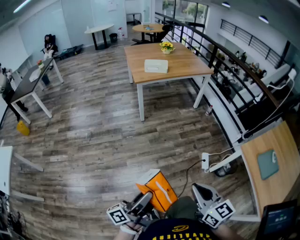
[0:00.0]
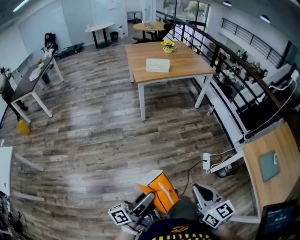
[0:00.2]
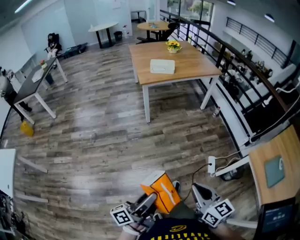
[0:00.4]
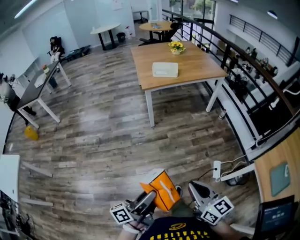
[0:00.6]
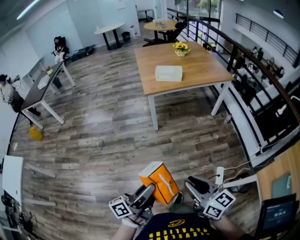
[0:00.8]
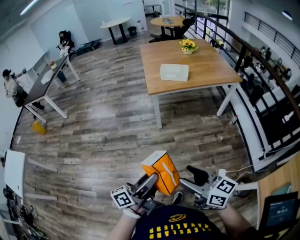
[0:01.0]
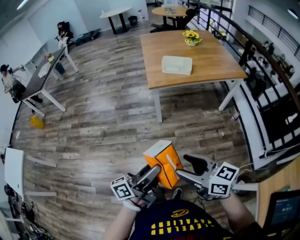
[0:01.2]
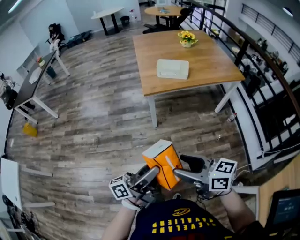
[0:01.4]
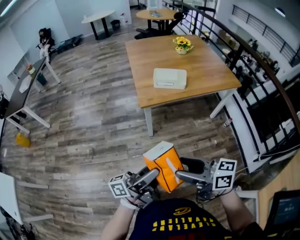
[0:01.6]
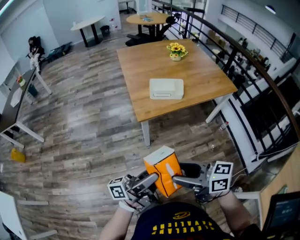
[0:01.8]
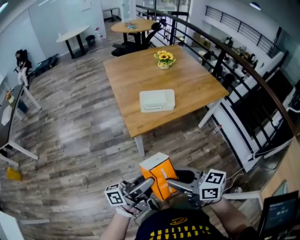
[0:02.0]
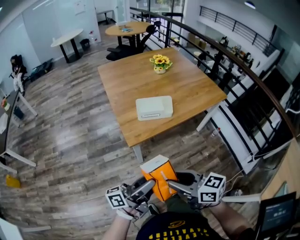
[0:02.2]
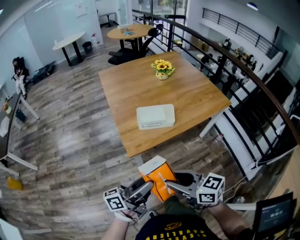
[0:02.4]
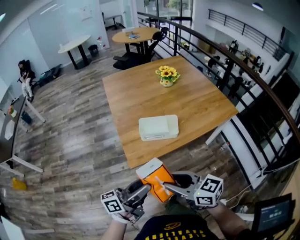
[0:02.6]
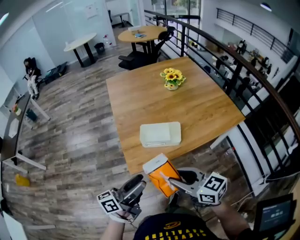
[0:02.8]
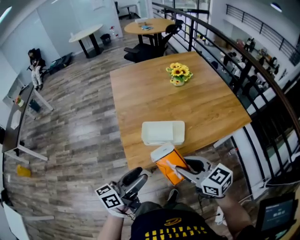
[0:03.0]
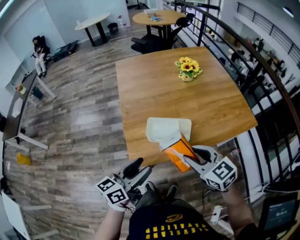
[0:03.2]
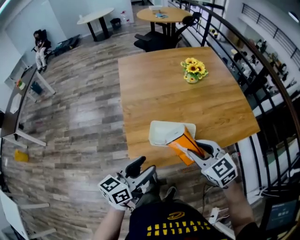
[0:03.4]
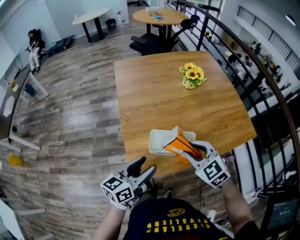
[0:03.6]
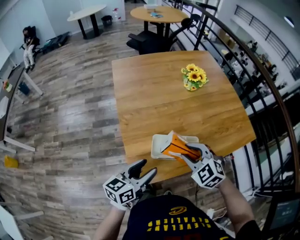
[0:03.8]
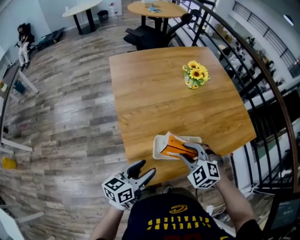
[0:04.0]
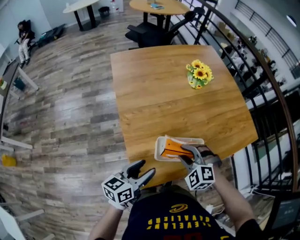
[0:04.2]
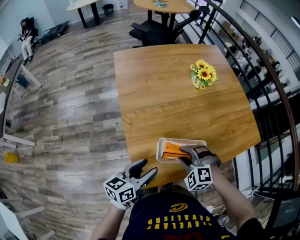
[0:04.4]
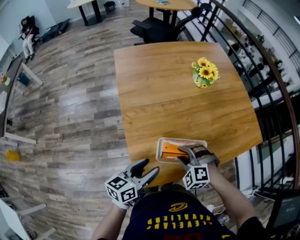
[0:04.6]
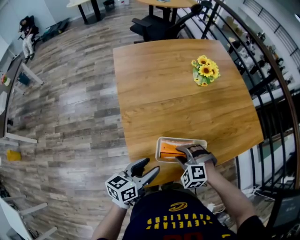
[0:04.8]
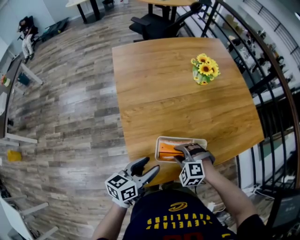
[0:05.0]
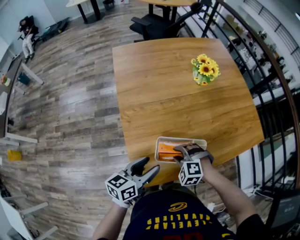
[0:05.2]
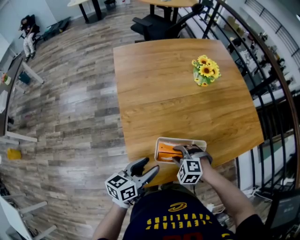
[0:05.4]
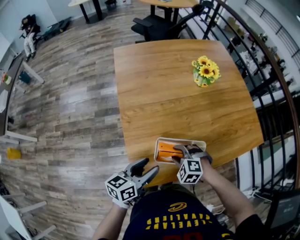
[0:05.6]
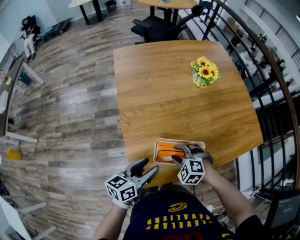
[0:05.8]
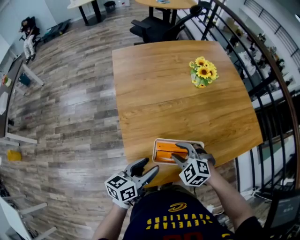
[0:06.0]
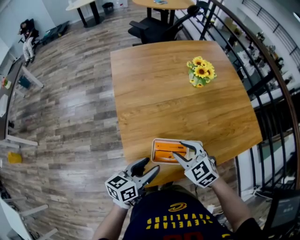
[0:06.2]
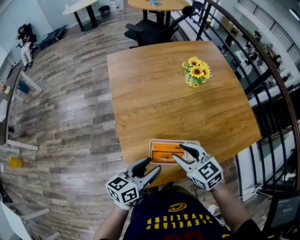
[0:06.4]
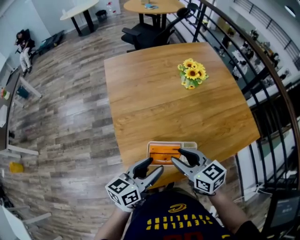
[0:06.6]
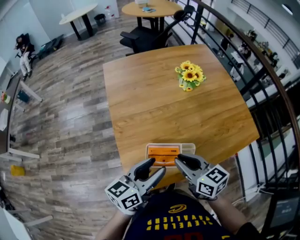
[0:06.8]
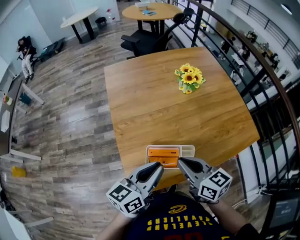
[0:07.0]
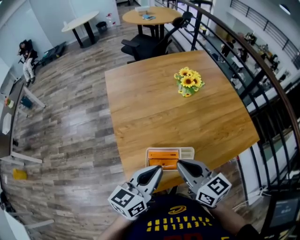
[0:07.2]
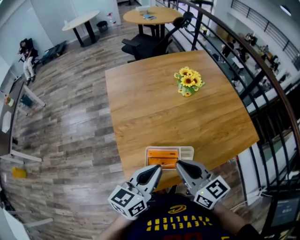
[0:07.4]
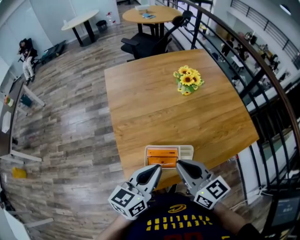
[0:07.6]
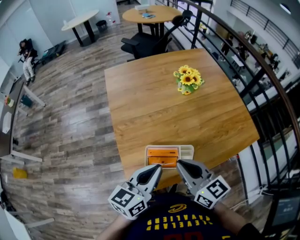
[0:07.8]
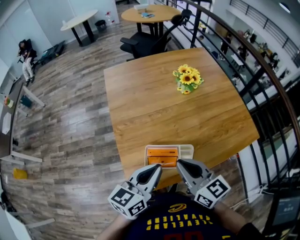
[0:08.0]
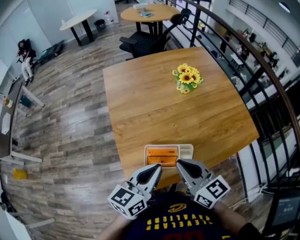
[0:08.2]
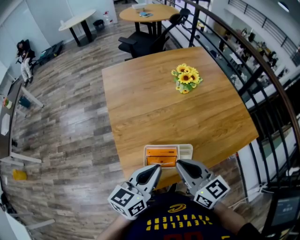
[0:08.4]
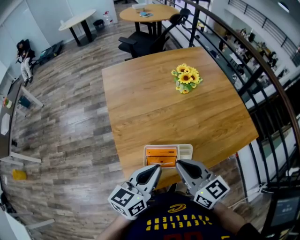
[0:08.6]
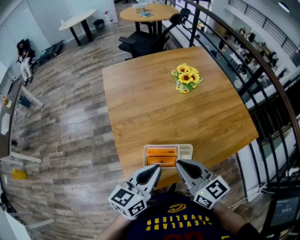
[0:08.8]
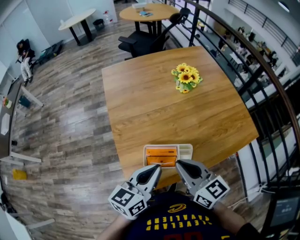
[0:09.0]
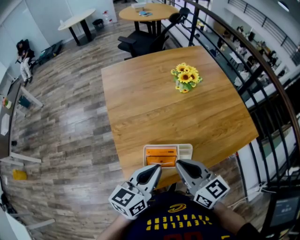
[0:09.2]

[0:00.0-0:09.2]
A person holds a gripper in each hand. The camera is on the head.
0:00.0 to 0:01.6: Both grippers are carried forward, roughly 50 cm. The right gripper swivels about 40 degrees, and opens up.
0:01.6 to 0:03.0: Both grippers move forward, roughly 40 cm. The right gripper changes its angle by approximately 30 degrees, and closes up. The left gripper rotates roughly 30 degrees.
0:03.0 to 0:04.6: The left gripper heads forward and downward, covering approximately 20 cm, while the right gripper moves forward, downward and to the left, about 30 cm, and twists roughly 60 degrees counterclockwise, seen from behind.
0:04.6 to 0:06.2: The right gripper moves upward, about 5 cm, and swivels approximately 40 degrees.
0:06.2 to 0:07.6: The left gripper moves upward and to the right, some 10 cm, and closes up; the right gripper goes roughly 10 cm upward, changes its angle by some 40 degrees, and closes up.
0:07.6 to 0:09.2: Neither gripper changes place.

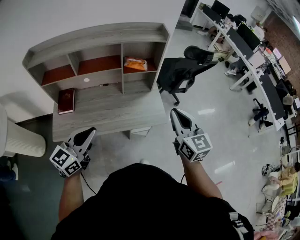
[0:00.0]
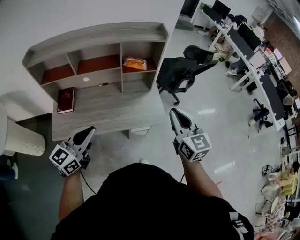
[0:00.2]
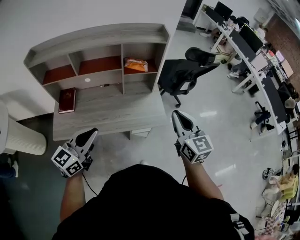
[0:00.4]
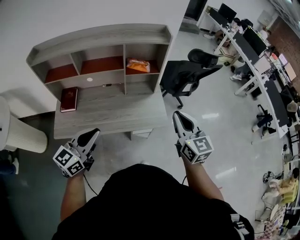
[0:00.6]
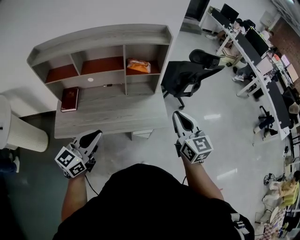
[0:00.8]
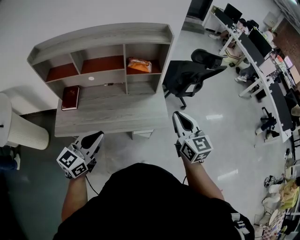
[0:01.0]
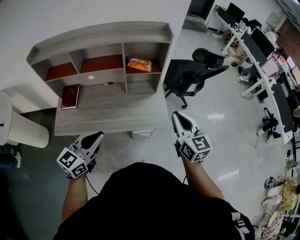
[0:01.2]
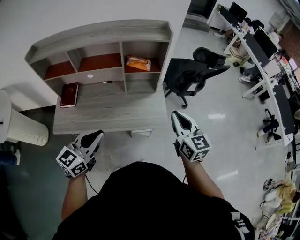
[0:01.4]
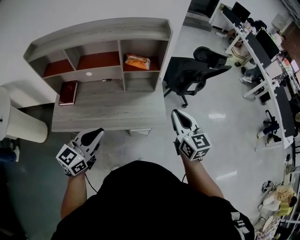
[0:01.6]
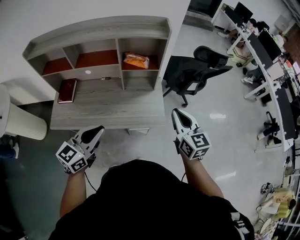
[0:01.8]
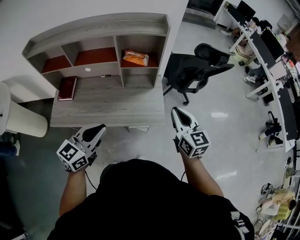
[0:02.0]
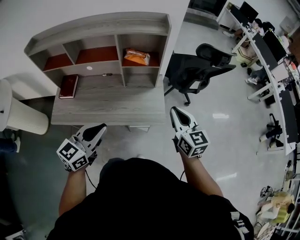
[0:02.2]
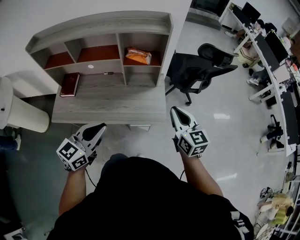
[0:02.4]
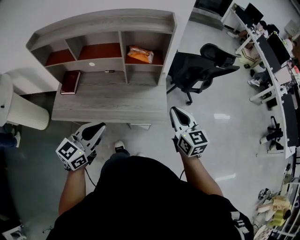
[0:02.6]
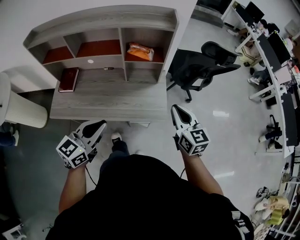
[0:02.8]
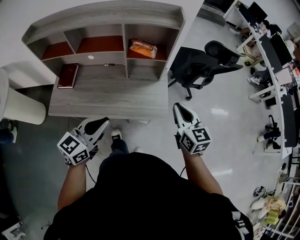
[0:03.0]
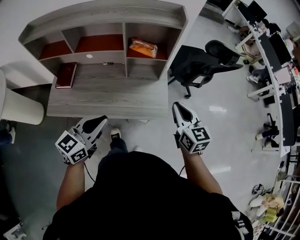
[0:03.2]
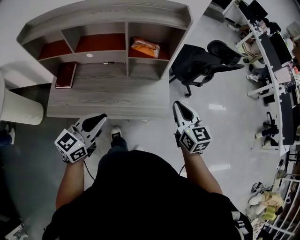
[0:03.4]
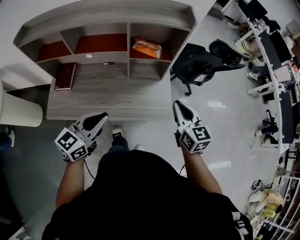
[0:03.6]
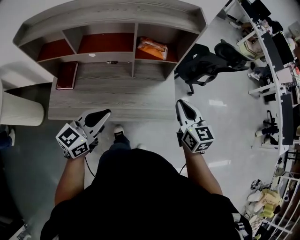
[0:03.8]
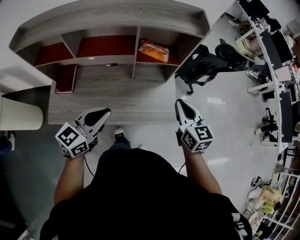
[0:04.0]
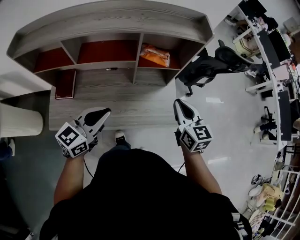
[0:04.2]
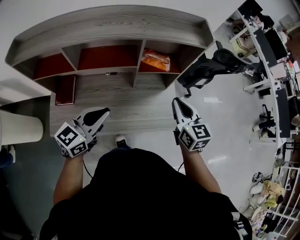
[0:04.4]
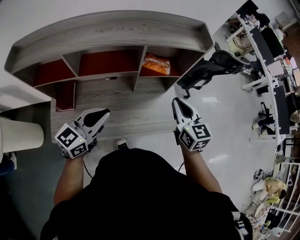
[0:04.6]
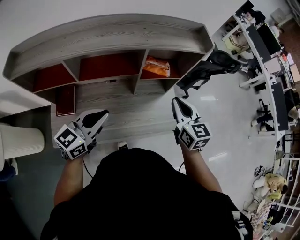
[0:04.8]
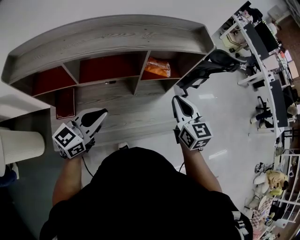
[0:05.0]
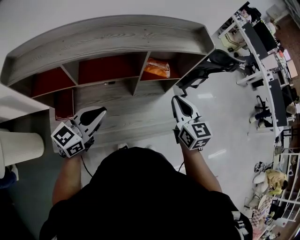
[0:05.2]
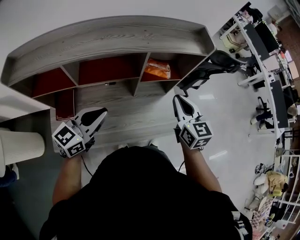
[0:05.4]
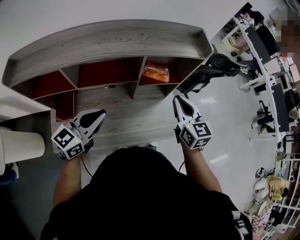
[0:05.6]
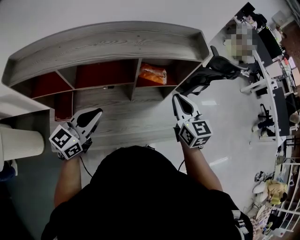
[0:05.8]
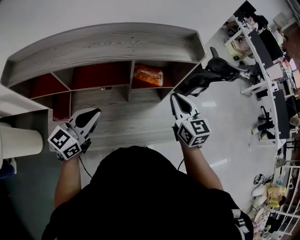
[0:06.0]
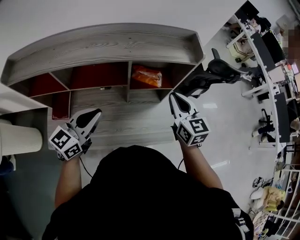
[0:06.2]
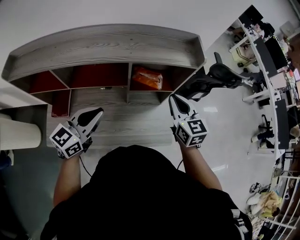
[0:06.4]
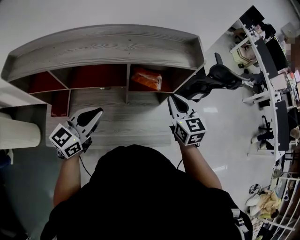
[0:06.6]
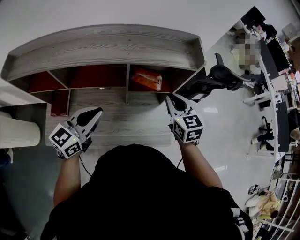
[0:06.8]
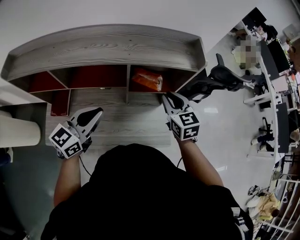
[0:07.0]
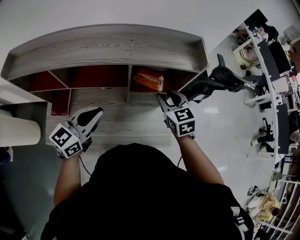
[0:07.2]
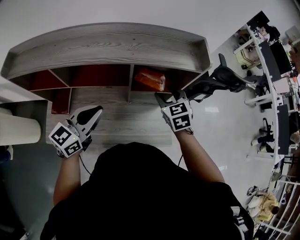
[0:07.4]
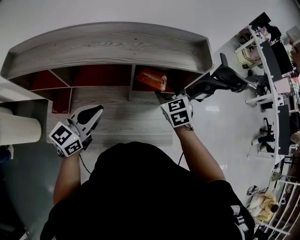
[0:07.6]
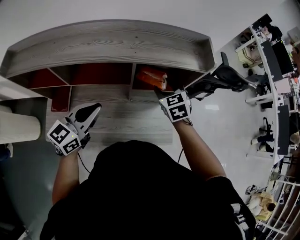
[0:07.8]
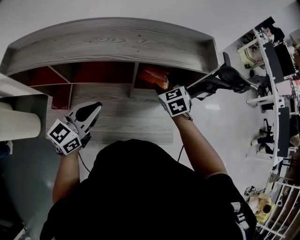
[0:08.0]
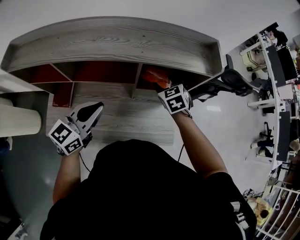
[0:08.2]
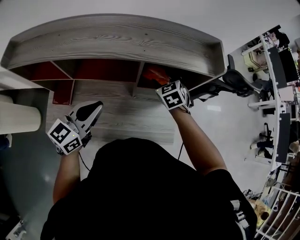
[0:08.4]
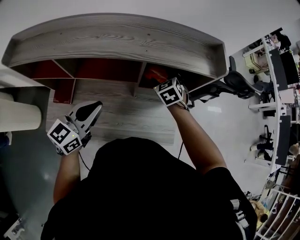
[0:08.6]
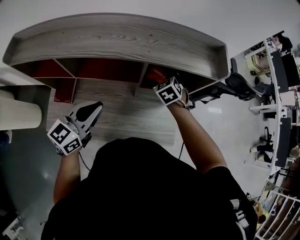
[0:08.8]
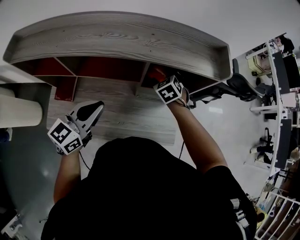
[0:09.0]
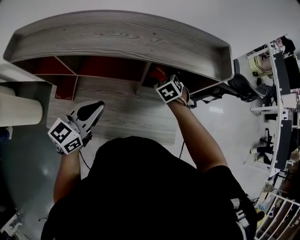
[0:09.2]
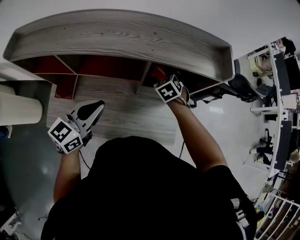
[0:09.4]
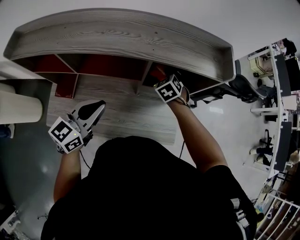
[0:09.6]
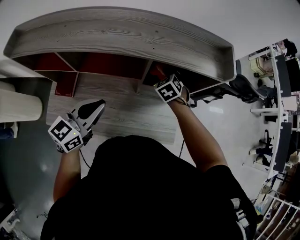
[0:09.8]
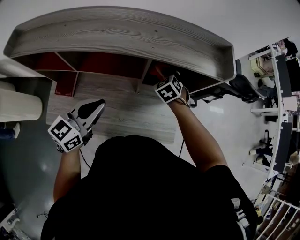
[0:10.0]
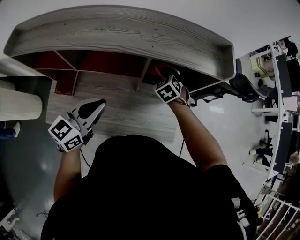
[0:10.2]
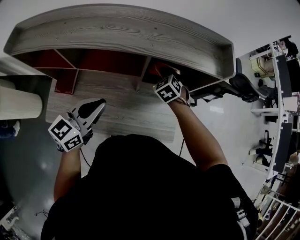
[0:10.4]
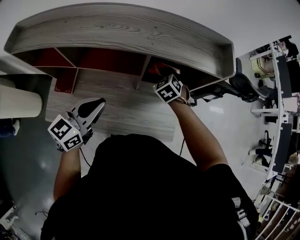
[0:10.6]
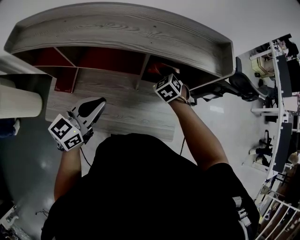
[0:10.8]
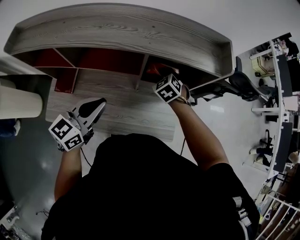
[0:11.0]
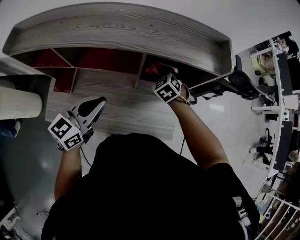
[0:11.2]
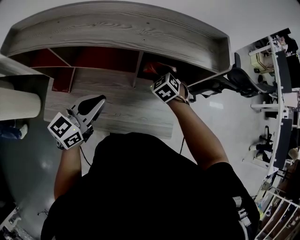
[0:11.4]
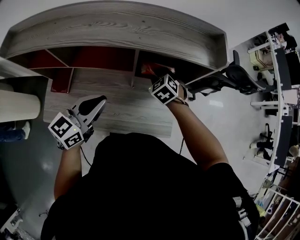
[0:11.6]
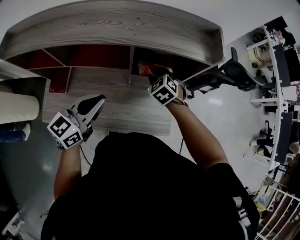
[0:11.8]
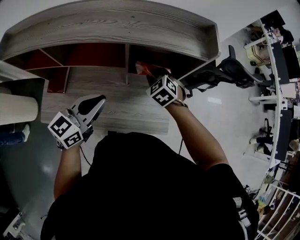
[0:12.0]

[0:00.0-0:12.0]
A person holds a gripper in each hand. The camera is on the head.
0:00.0 to 0:01.6: The left gripper heads to the right, covering roughly 10 cm, while the right gripper moves forward, to the right and downward, approximately 10 cm.
0:01.6 to 0:03.0: The right gripper moves roughly 5 cm; the left gripper changes place by about 5 cm.
0:03.0 to 0:04.4: Both grippers travel together to the left and forward, approximately 20 cm.
0:04.4 to 0:06.0: Both grippers travel together forward, some 10 cm.
0:06.0 to 0:07.6: The right gripper shifts about 10 cm forward and downward, rotates roughly 30 degrees, and opens its fingers.
0:07.6 to 0:09.0: The right gripper heads downward, forward and to the left, covering approximately 10 cm, and rotates approximately 20 degrees.
0:09.0 to 0:10.4: The right gripper closes its fingers.
0:10.4 to 0:12.0: The left gripper is displaced to the right by roughly 5 cm. Meanwhile the right gripper goes about 5 cm backward.

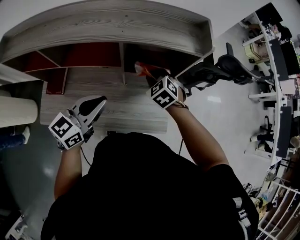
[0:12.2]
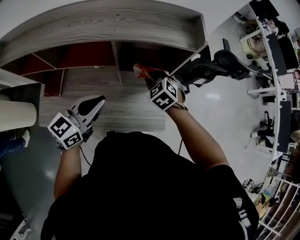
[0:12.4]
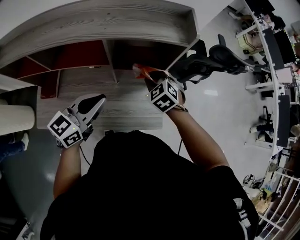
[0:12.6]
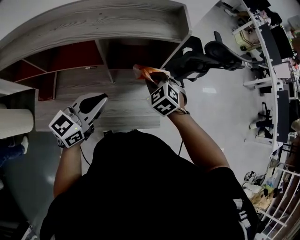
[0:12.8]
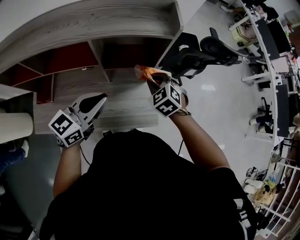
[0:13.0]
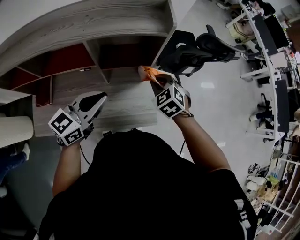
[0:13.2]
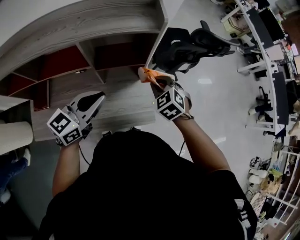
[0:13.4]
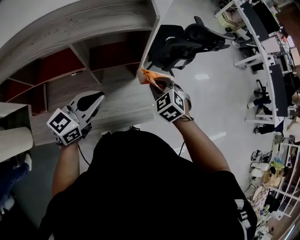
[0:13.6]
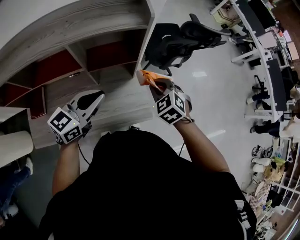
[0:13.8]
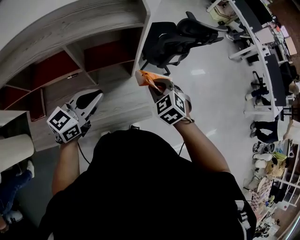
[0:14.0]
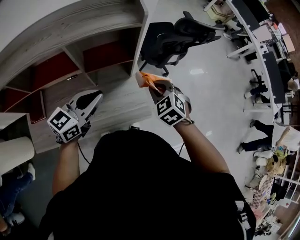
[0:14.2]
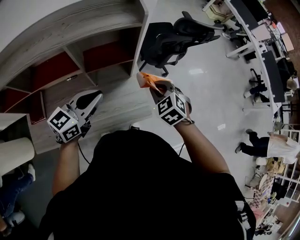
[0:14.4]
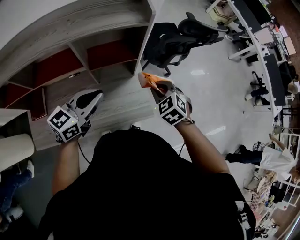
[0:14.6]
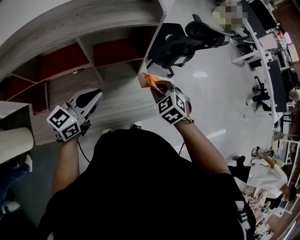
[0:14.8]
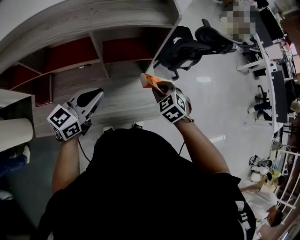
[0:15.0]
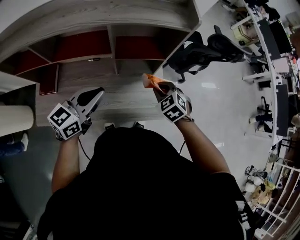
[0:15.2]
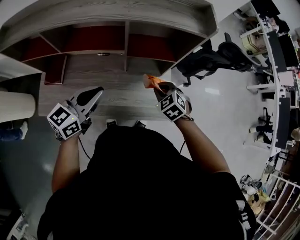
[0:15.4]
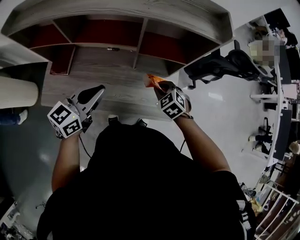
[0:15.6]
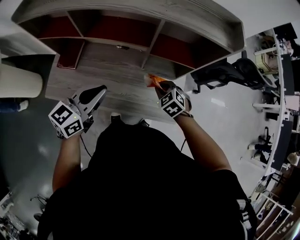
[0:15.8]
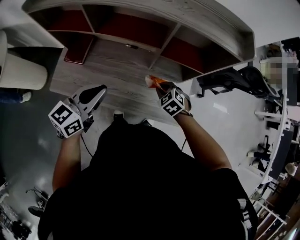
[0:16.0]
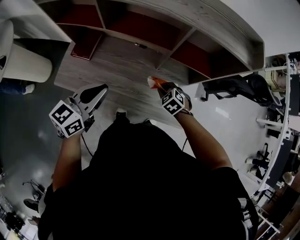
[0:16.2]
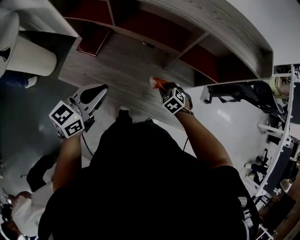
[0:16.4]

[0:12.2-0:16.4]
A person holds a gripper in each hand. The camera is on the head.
0:12.2 to 0:13.6: The right gripper moves to the right, approximately 15 cm. Meanwhile the left gripper is displaced to the right by approximately 10 cm.
0:13.6 to 0:15.0: The right gripper changes place by roughly 5 cm. Meanwhile the left gripper is displaced to the left by about 5 cm.
0:15.0 to 0:16.4: The left gripper changes place by roughly 25 cm, and swivels about 30 degrees. The right gripper changes place by about 25 cm, and rotates approximately 30 degrees.
